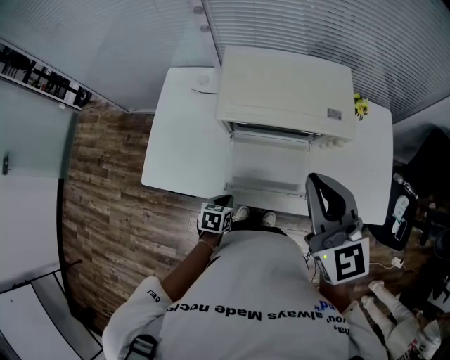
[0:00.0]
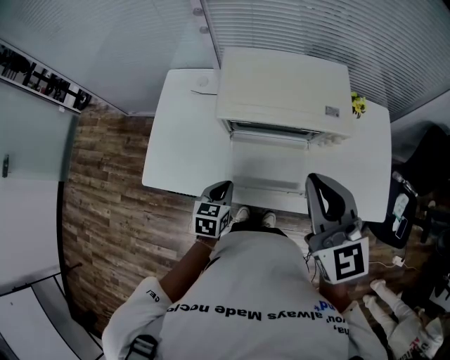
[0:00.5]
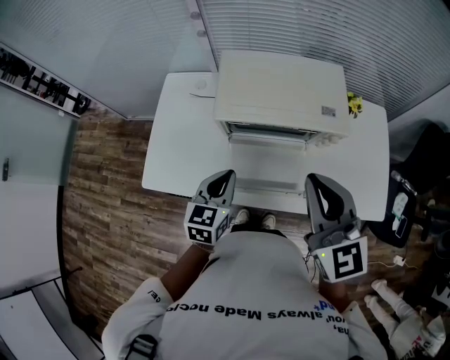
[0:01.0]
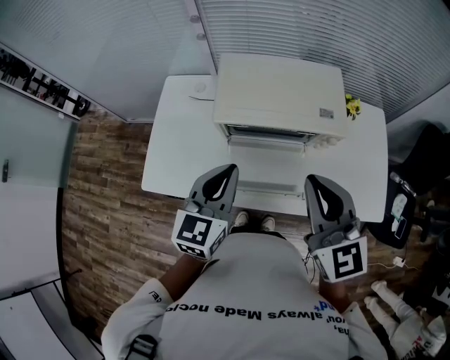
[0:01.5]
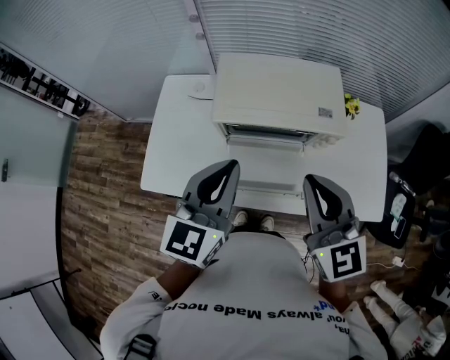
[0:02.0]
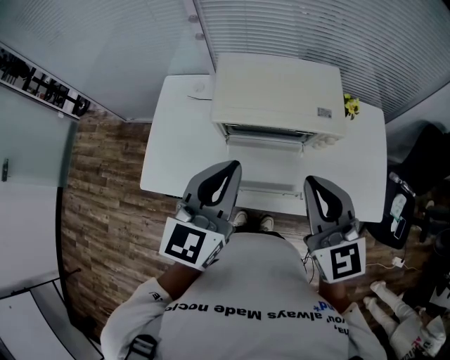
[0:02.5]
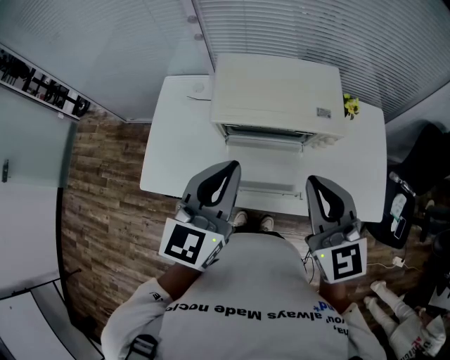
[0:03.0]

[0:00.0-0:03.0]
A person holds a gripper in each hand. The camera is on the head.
0:00.0 to 0:01.5: The left gripper heads upward, covering some 30 cm, and points its fingers some 40 degrees further upward.
0:01.5 to 0:03.0: The left gripper goes about 5 cm upward.

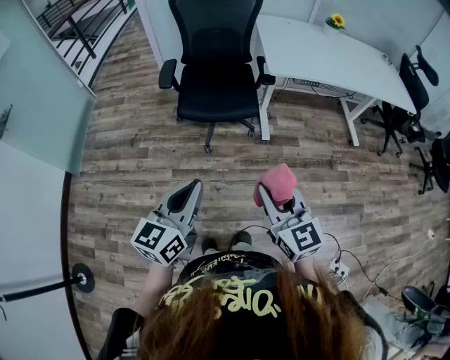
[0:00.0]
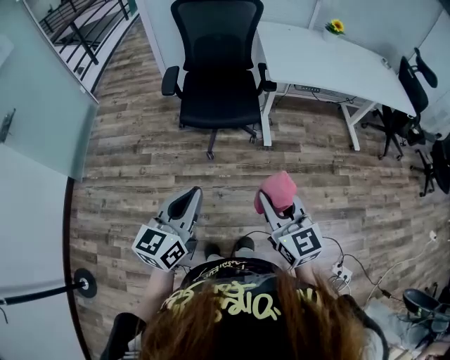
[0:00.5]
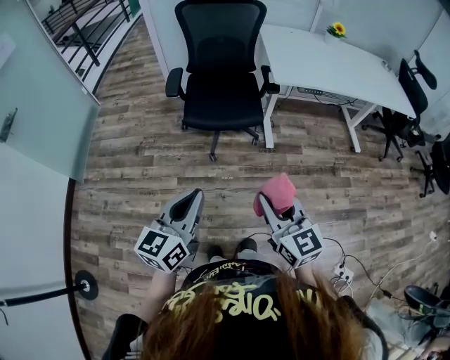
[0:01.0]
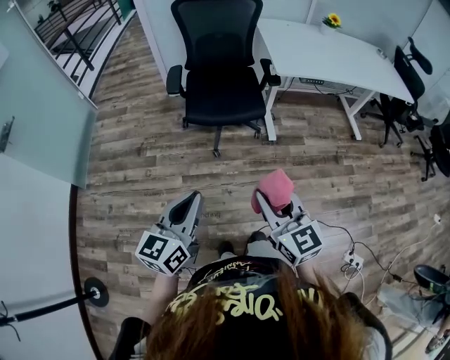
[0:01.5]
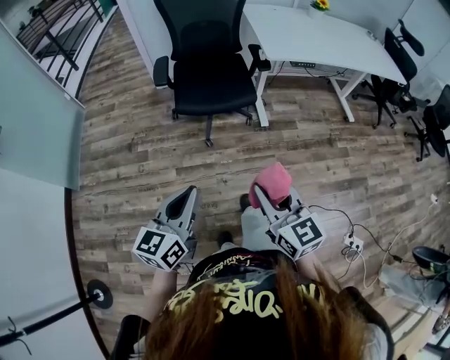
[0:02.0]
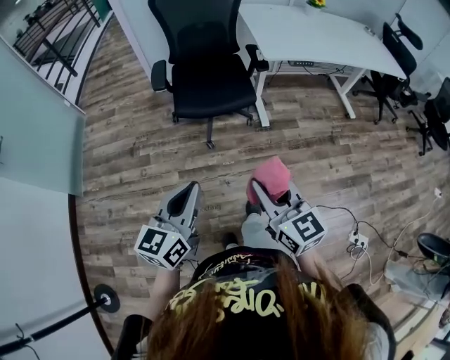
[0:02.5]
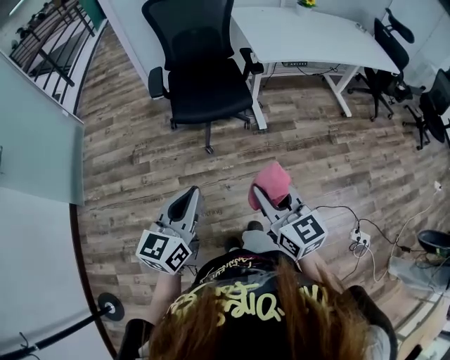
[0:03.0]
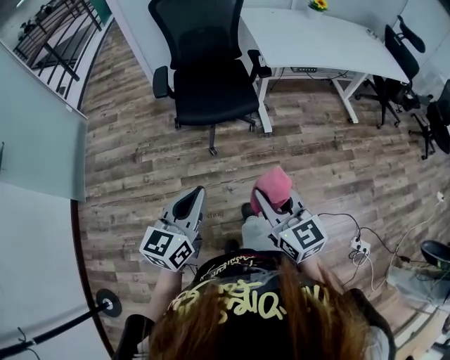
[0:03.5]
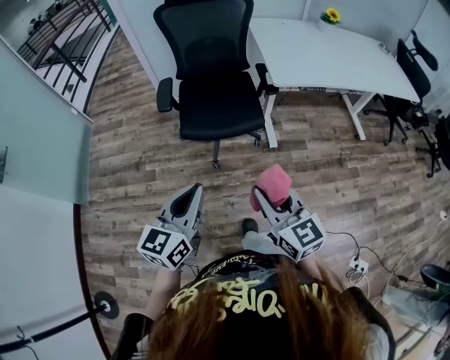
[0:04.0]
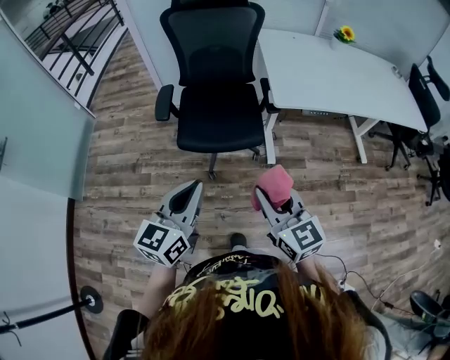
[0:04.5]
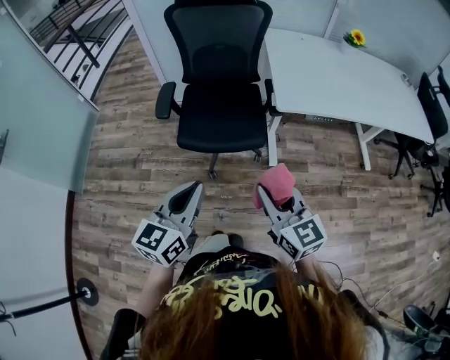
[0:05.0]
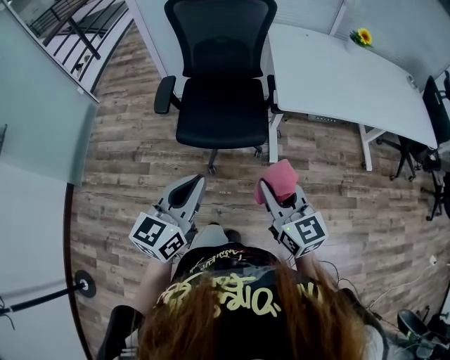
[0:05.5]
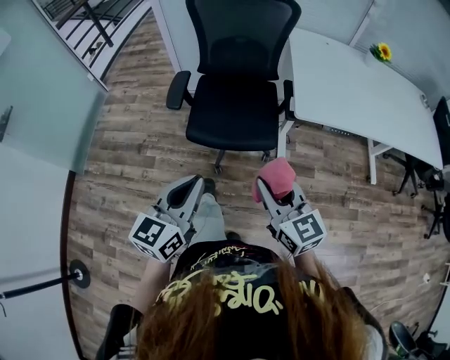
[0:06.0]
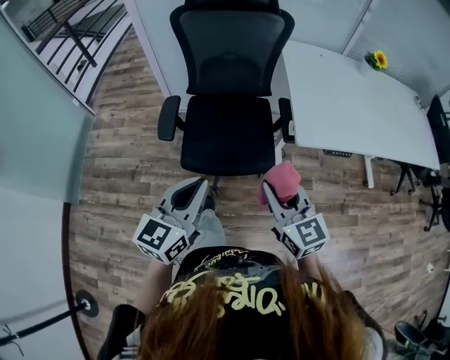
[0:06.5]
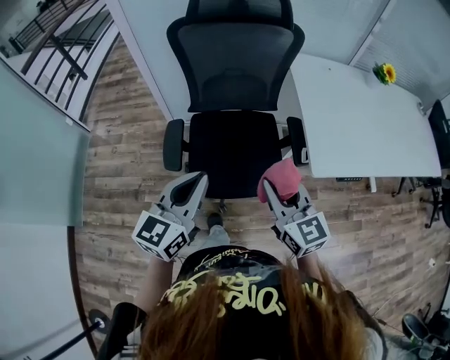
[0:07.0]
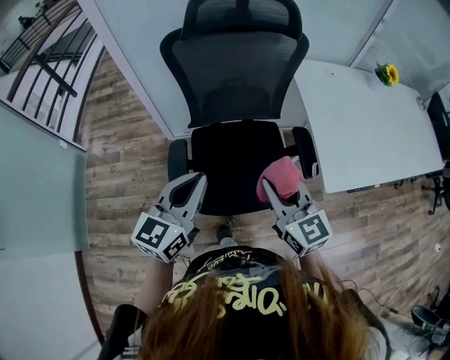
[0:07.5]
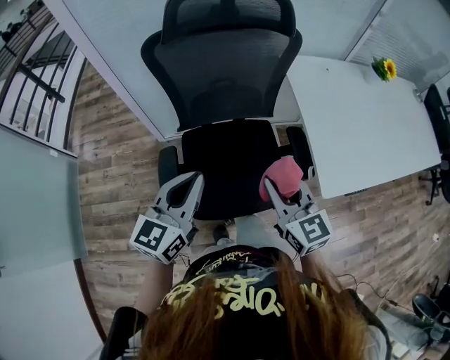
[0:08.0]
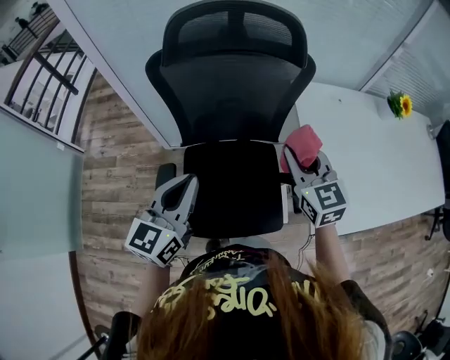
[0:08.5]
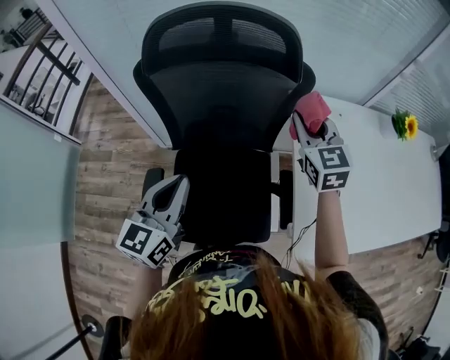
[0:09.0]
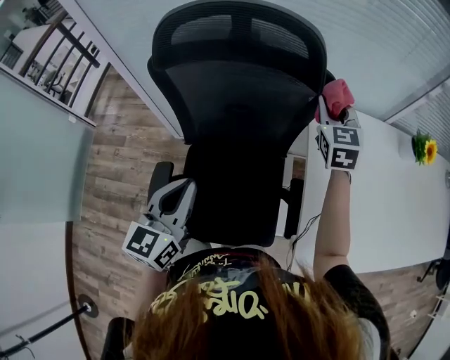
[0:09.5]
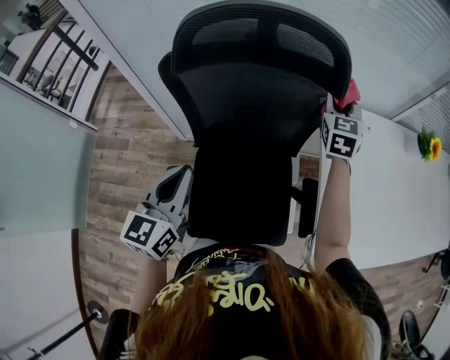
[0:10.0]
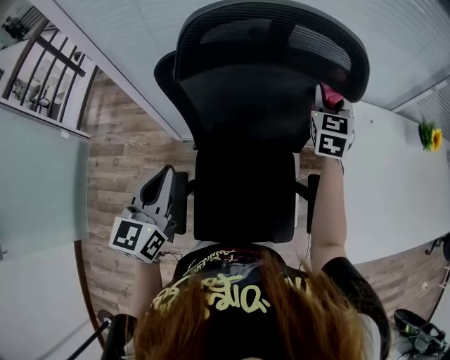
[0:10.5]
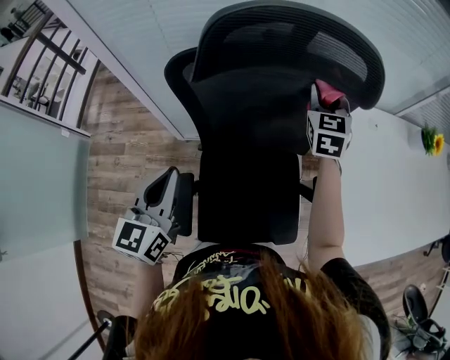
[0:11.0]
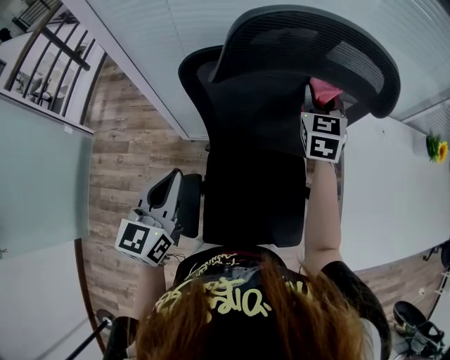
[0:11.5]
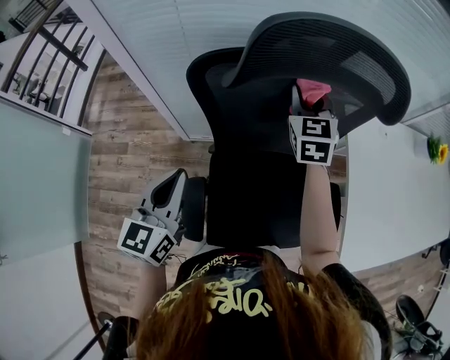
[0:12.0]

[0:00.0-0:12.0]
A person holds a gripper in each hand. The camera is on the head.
0:00.0 to 0:02.0: Both grippers move to the left, some 10 cm.
0:02.0 to 0:04.0: The two grippers go roughly 15 cm forward.
0:04.0 to 0:06.0: The grippers both shift forward by about 15 cm.
0:06.0 to 0:08.0: The two grippers go approximately 35 cm forward.
0:08.0 to 0:10.0: The left gripper shifts approximately 15 cm forward, while the right gripper shifts roughly 40 cm forward, and swivels approximately 30 degrees.
0:10.0 to 0:12.0: The left gripper moves to the left, approximately 15 cm; the right gripper goes about 20 cm to the left.

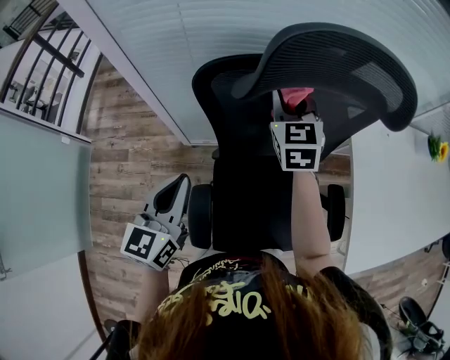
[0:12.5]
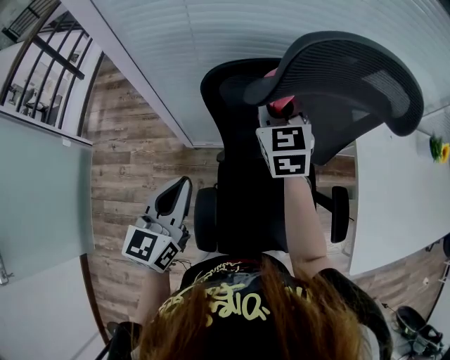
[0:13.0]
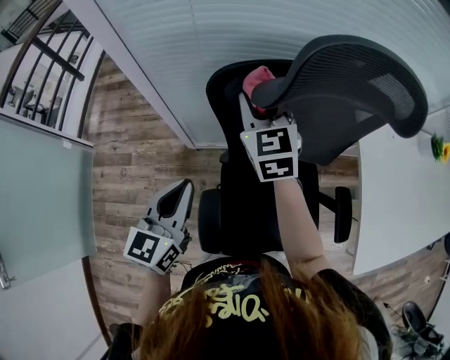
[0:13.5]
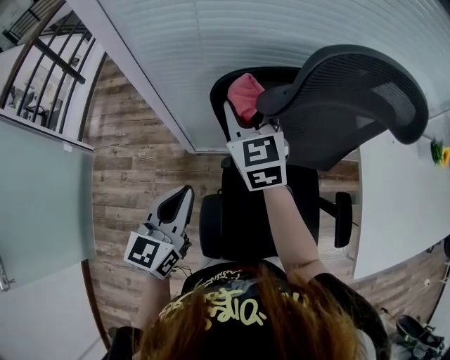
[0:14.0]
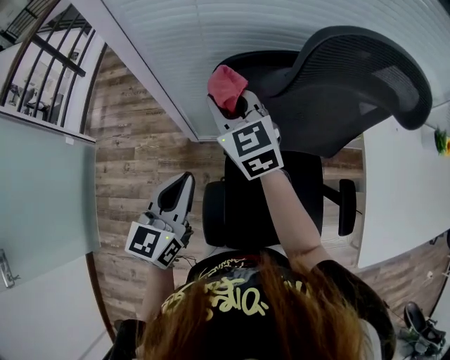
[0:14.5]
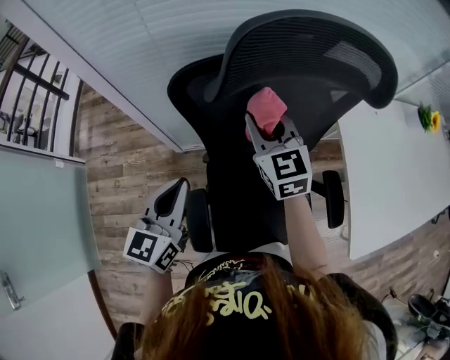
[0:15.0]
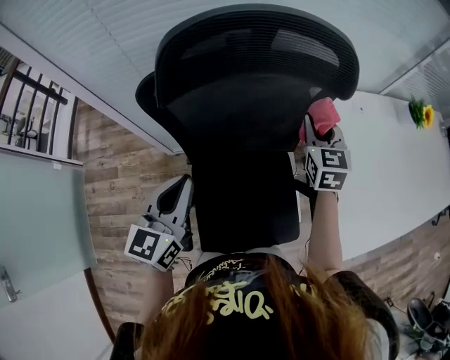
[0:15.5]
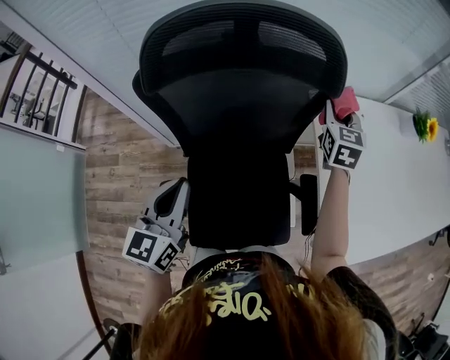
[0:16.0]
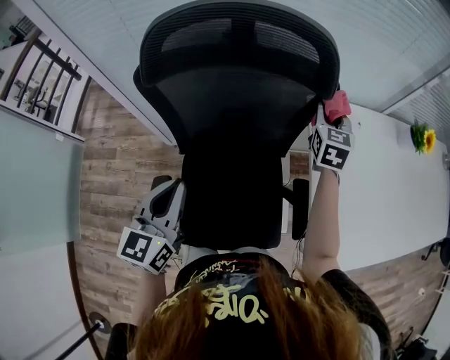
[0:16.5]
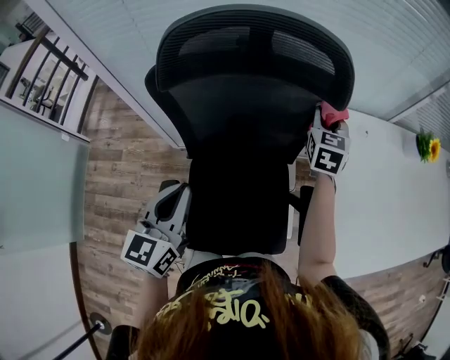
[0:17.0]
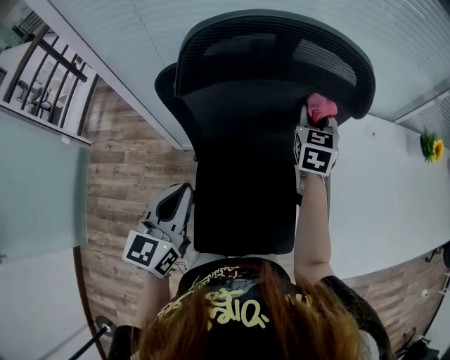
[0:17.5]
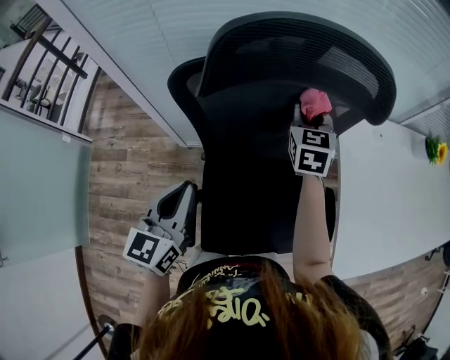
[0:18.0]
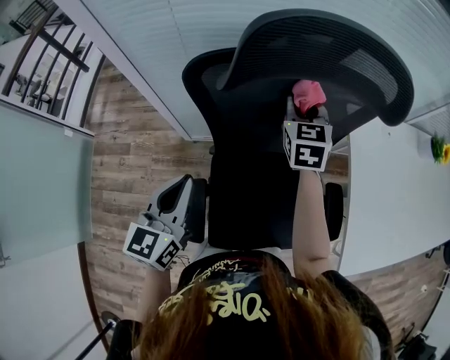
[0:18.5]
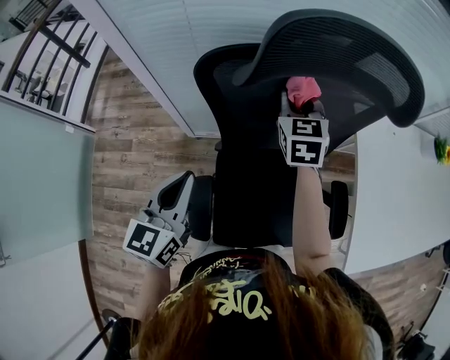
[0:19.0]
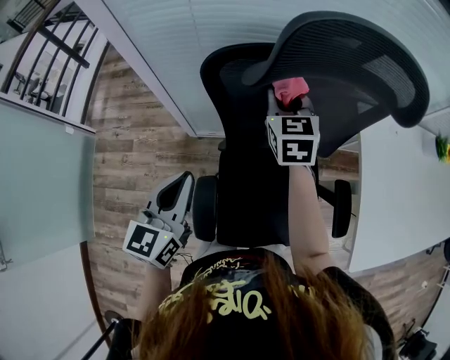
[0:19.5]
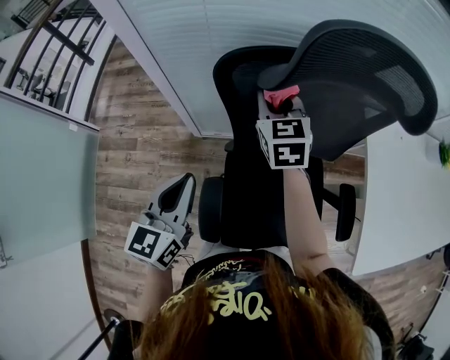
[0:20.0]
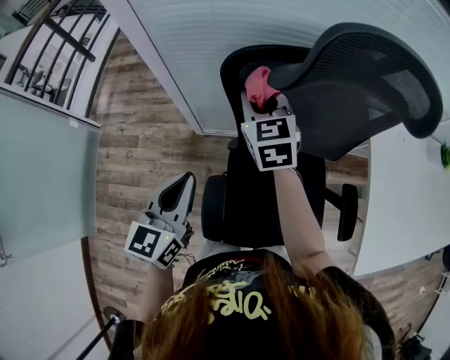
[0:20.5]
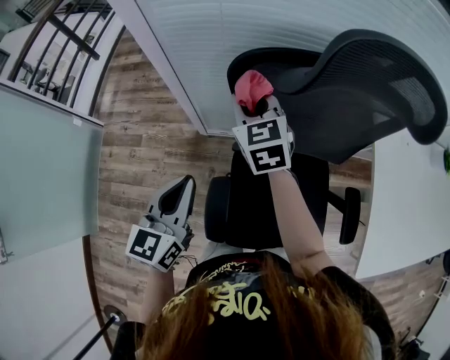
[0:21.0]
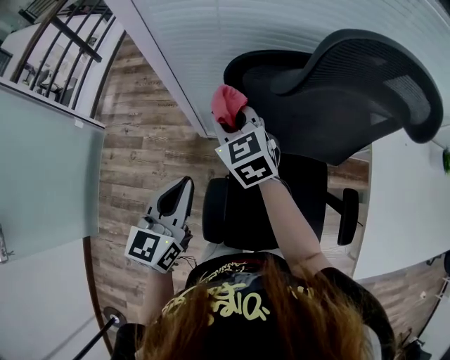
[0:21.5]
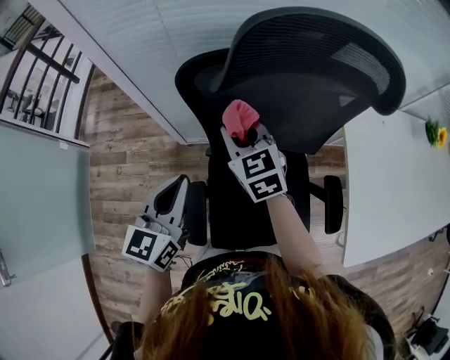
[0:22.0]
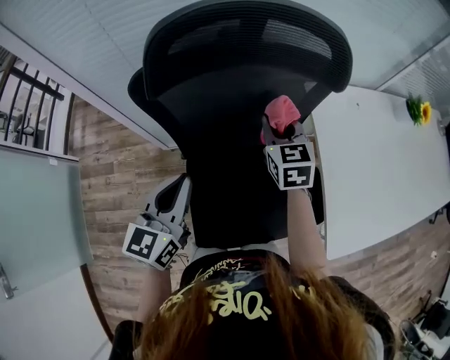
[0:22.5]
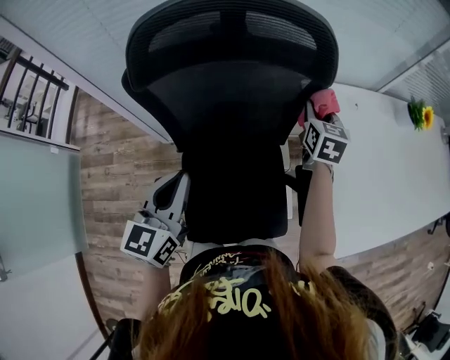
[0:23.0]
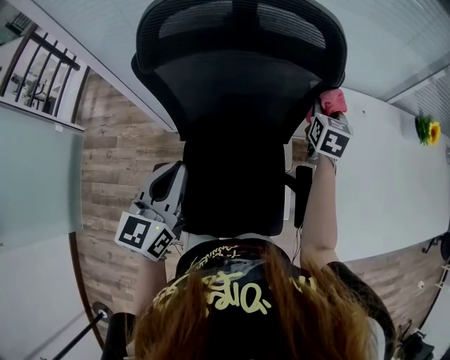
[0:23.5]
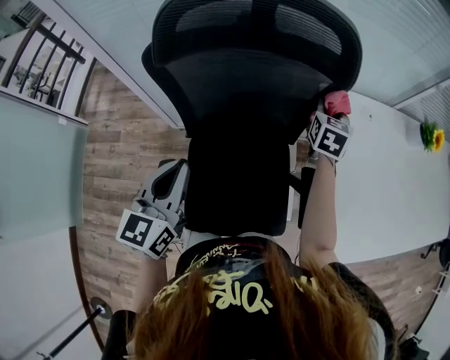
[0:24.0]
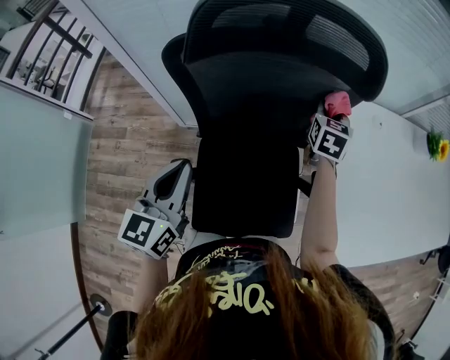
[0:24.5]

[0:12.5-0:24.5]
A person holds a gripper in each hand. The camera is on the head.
0:12.5 to 0:14.5: The right gripper moves to the left, about 20 cm, and turns by approximately 20 degrees.
0:14.5 to 0:16.5: The left gripper moves to the right, roughly 20 cm. The right gripper heads to the right, covering some 50 cm, and rotates roughly 40 degrees.
0:16.5 to 0:18.5: The left gripper is displaced to the left by about 10 cm, while the right gripper travels to the left by approximately 25 cm.
0:18.5 to 0:20.5: The left gripper moves to the left, about 10 cm; the right gripper moves to the left, roughly 20 cm.
0:20.5 to 0:22.5: The left gripper is displaced to the right by some 20 cm, while the right gripper heads to the right, covering some 25 cm.
0:22.5 to 0:24.5: The right gripper moves to the right and forward, some 10 cm.
